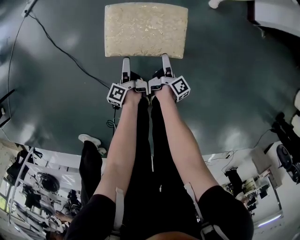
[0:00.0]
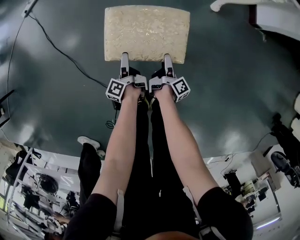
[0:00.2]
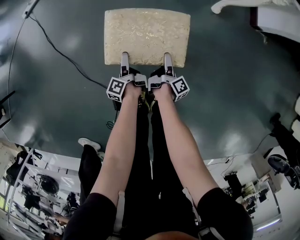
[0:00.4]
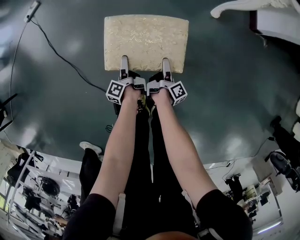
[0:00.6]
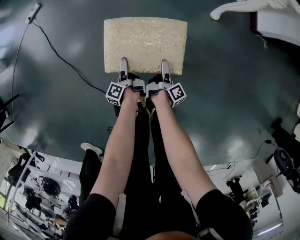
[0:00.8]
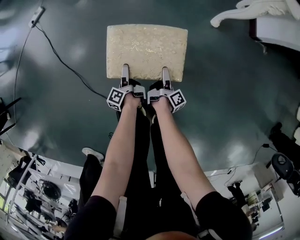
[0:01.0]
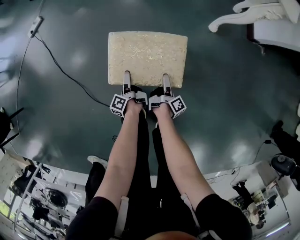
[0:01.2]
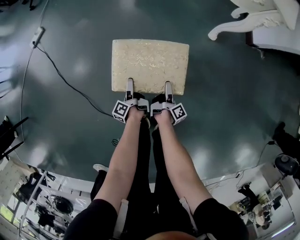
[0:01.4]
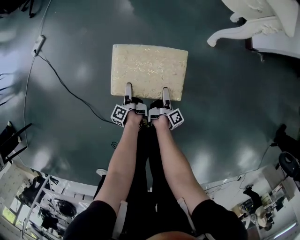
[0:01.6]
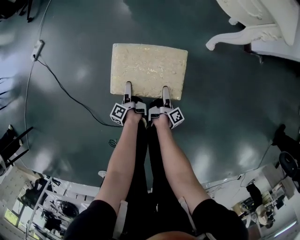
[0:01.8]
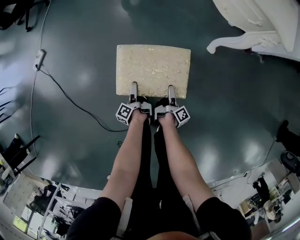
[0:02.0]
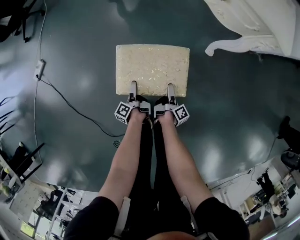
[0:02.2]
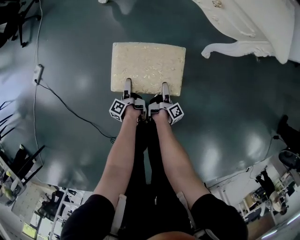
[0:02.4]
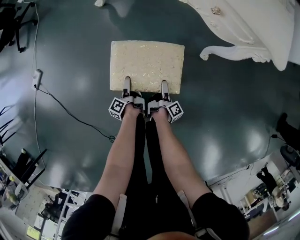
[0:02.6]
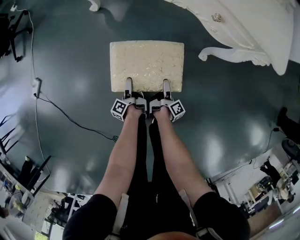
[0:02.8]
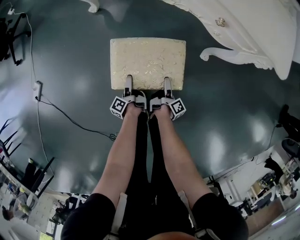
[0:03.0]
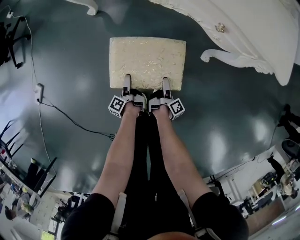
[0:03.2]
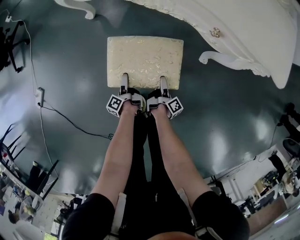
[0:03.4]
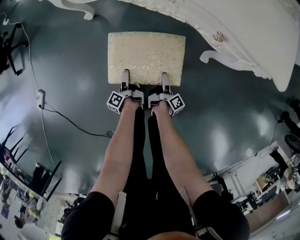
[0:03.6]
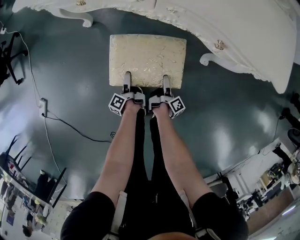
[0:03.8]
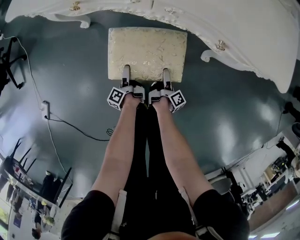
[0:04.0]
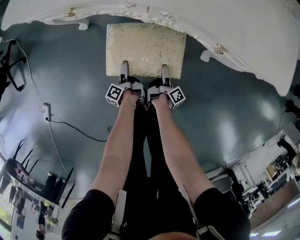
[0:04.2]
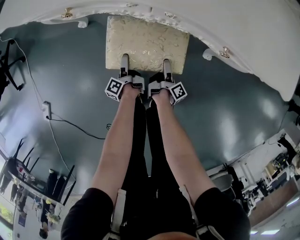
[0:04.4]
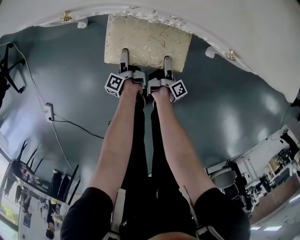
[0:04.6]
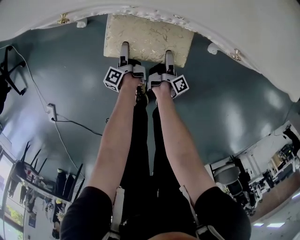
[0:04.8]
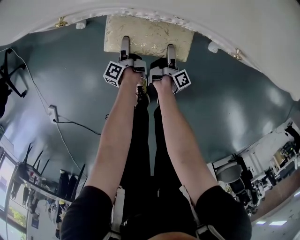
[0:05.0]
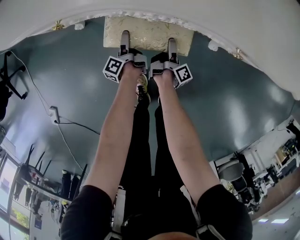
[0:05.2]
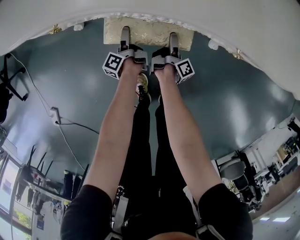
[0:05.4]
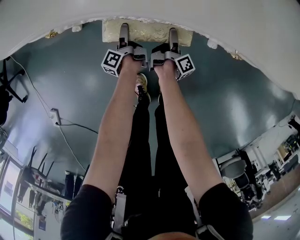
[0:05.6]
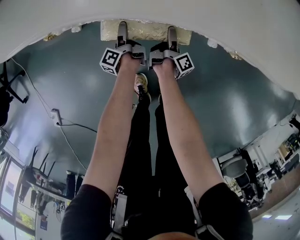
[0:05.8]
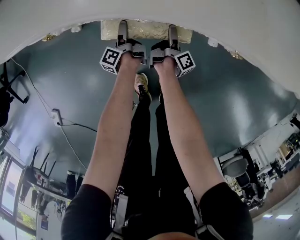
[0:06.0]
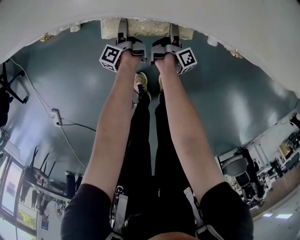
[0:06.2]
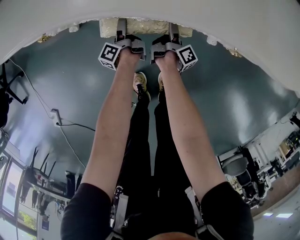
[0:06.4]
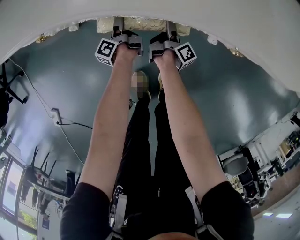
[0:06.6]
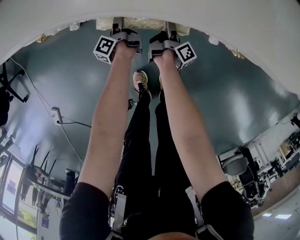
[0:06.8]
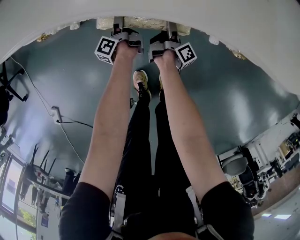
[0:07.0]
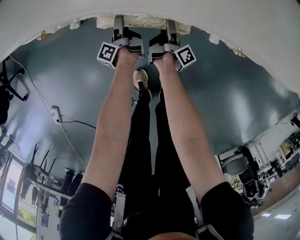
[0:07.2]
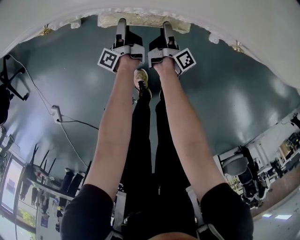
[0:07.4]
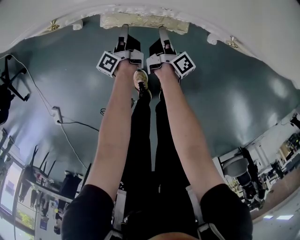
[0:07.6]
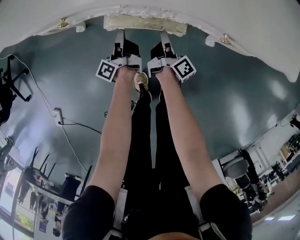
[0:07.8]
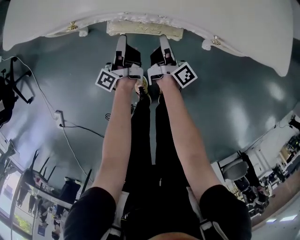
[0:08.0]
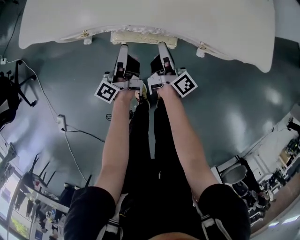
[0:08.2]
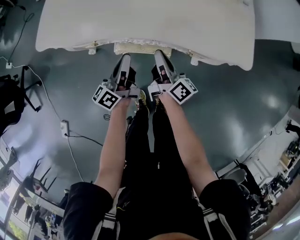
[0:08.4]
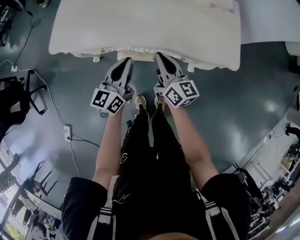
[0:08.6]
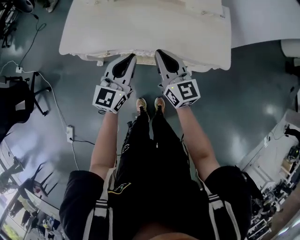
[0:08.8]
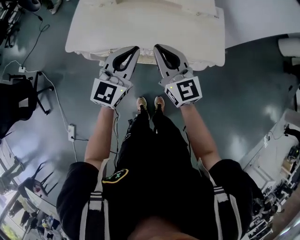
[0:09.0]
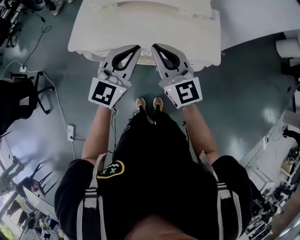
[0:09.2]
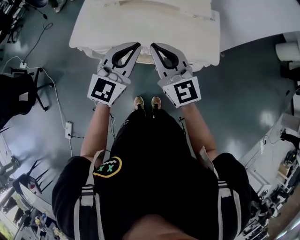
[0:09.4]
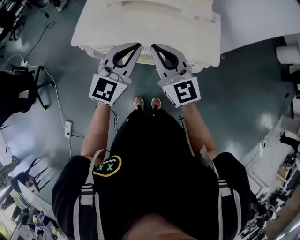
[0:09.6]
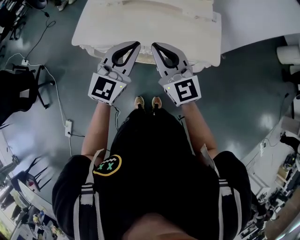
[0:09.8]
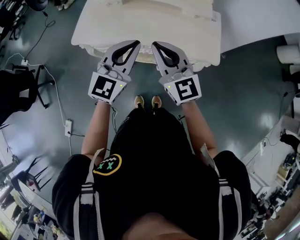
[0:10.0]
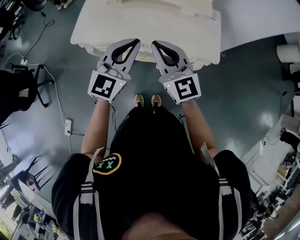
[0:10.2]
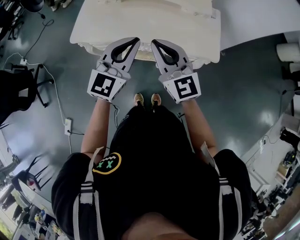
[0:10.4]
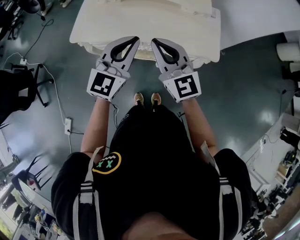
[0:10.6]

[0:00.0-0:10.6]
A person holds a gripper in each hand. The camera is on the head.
0:00.0 to 0:01.6: Both grippers move forward, some 20 cm.
0:01.6 to 0:03.0: The grippers both shift forward by about 35 cm.
0:03.0 to 0:04.6: The two grippers go approximately 25 cm forward.
0:04.6 to 0:06.0: The grippers both shift forward by some 10 cm.
0:06.0 to 0:07.6: Both grippers travel together upward, some 5 cm. The left gripper closes its fingers, while the right gripper closes up.
0:07.6 to 0:09.0: The grippers both shift upward by some 60 cm. The left gripper twists roughly 90 degrees clockwise, seen from behind, while the right gripper twists roughly 90 degrees counterclockwise, seen from behind.
0:09.0 to 0:10.6: The two grippers go approximately 10 cm upward.

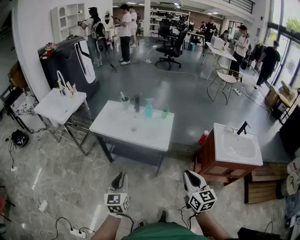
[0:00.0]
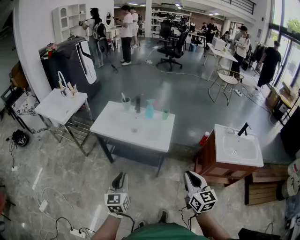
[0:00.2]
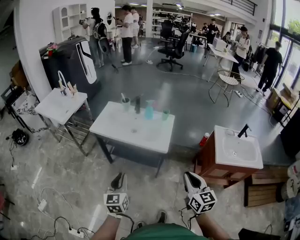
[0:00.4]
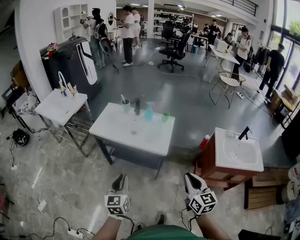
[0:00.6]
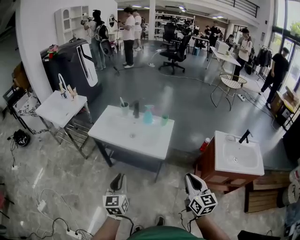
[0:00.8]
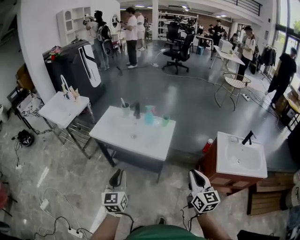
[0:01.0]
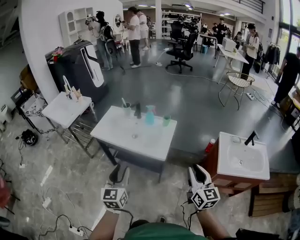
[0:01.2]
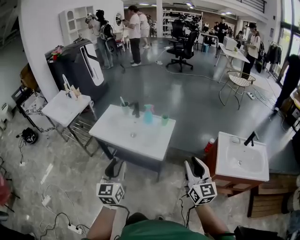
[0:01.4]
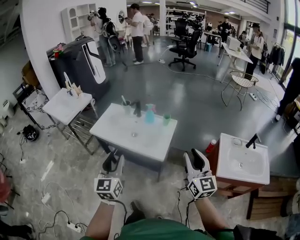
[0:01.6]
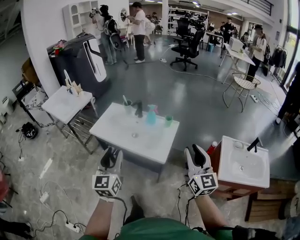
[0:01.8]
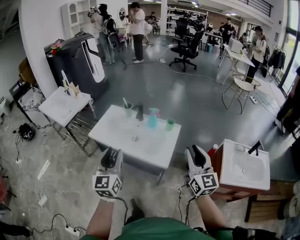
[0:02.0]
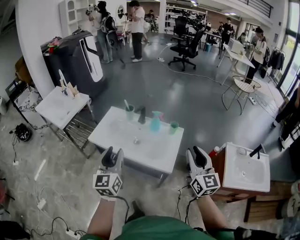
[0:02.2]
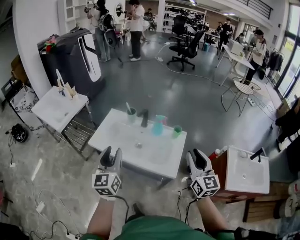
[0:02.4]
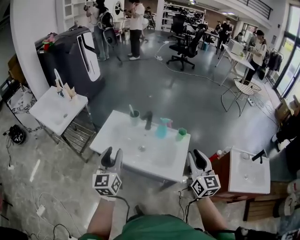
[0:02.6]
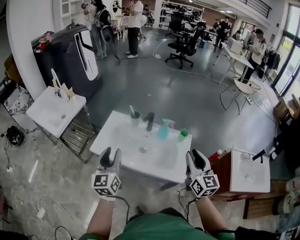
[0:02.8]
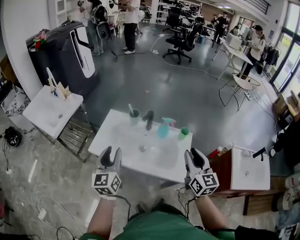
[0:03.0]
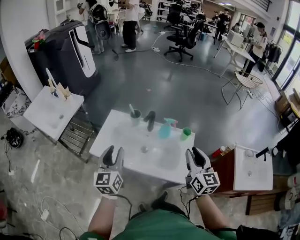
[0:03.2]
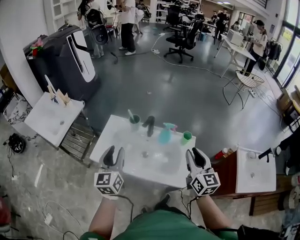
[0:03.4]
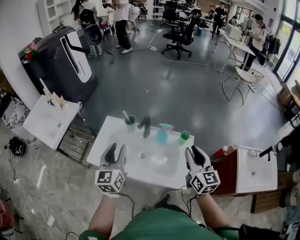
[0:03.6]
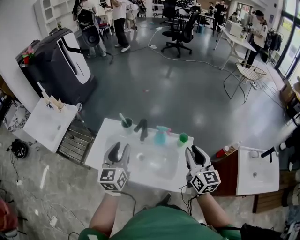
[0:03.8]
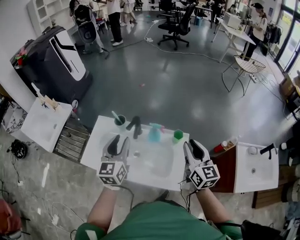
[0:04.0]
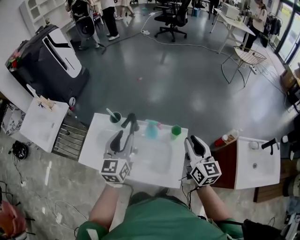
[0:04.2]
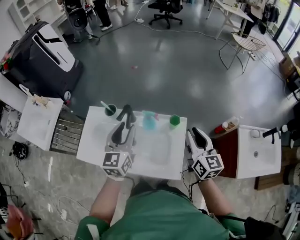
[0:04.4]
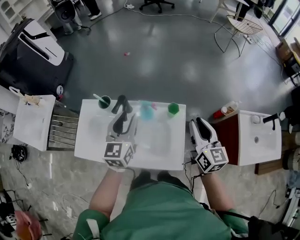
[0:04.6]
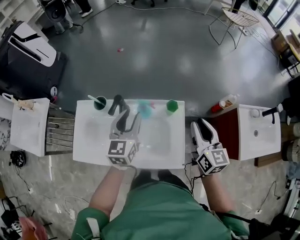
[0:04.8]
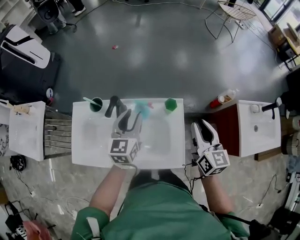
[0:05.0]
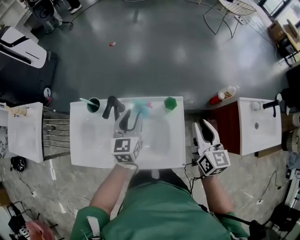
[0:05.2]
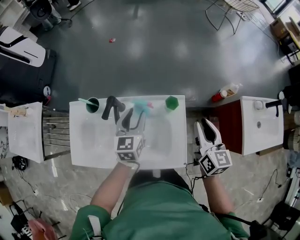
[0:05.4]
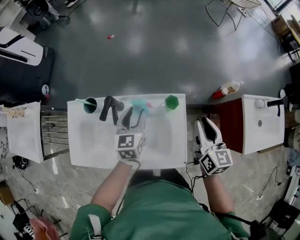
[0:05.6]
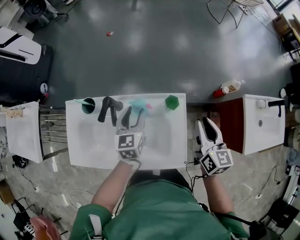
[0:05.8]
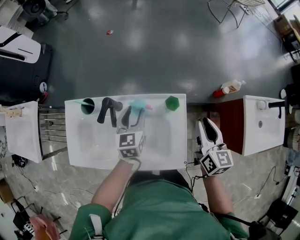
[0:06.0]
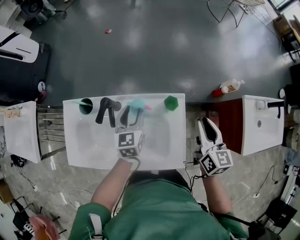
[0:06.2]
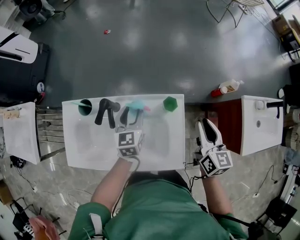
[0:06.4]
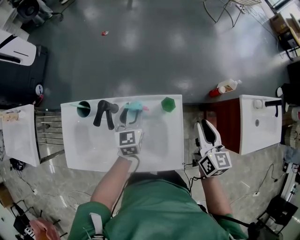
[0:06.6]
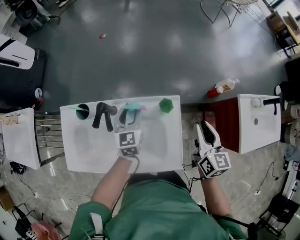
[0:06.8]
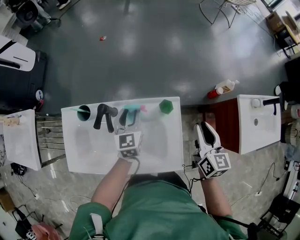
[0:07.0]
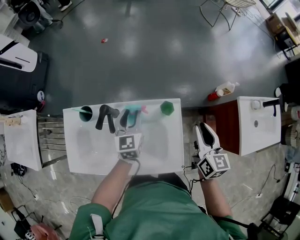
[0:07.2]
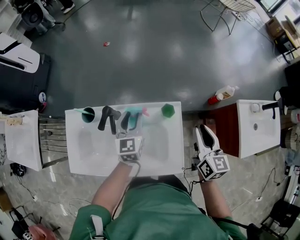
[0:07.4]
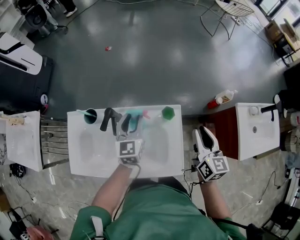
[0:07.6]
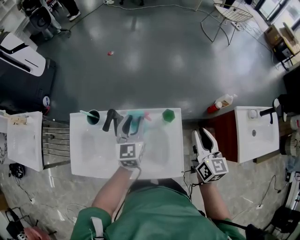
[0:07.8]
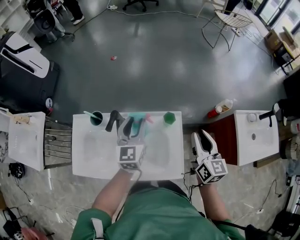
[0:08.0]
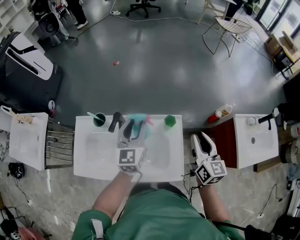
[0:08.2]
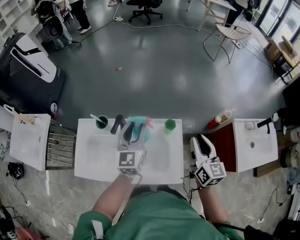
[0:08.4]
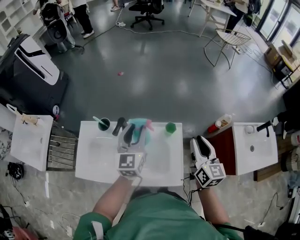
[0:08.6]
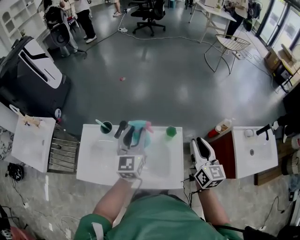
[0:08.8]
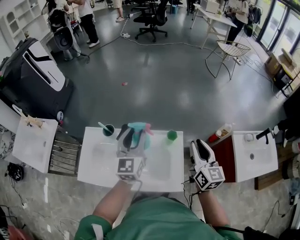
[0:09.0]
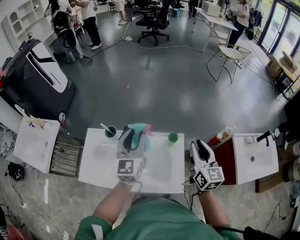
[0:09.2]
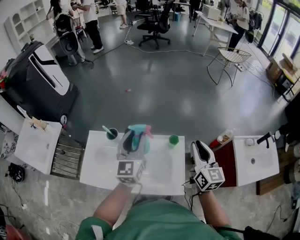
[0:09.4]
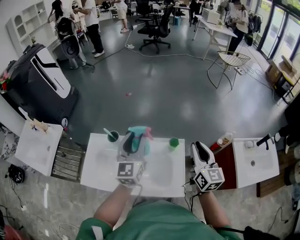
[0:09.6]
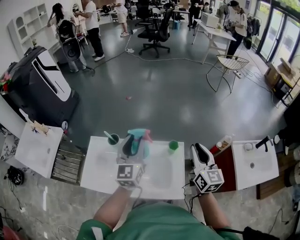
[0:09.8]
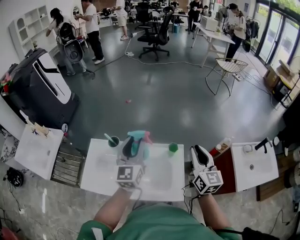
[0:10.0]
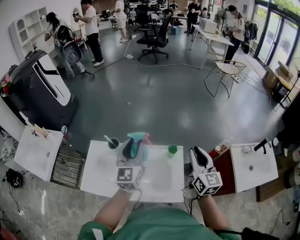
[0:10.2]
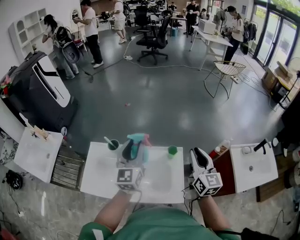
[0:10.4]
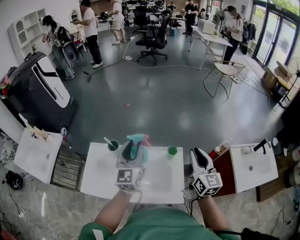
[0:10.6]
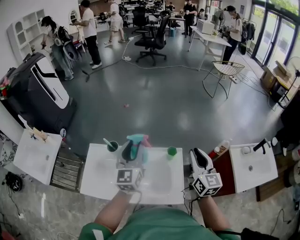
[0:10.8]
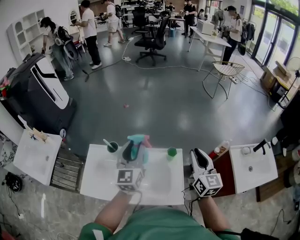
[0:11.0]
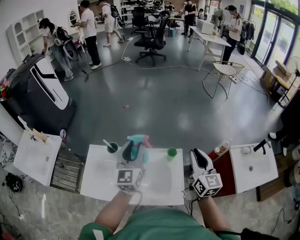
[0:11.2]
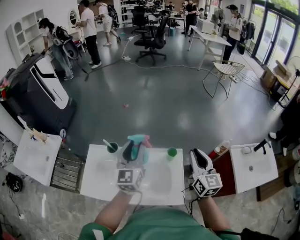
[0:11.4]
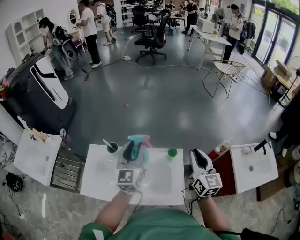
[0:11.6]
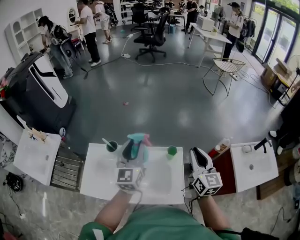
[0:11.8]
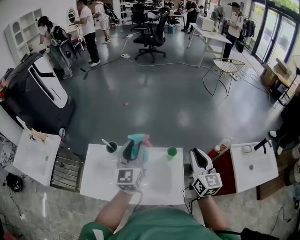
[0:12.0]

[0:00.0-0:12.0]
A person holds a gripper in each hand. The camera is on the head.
0:00.0 to 0:01.6: Both grippers move forward, to the right and upward, some 20 cm. The left gripper opens up.
0:01.6 to 0:03.0: Both grippers travel together forward and to the left, about 35 cm.
0:03.0 to 0:04.4: The left gripper moves to the right and forward, approximately 30 cm; the right gripper is displaced forward and to the right by about 25 cm.
0:04.4 to 0:06.0: The left gripper goes roughly 25 cm downward and forward, and changes its angle by approximately 20 degrees, while the right gripper heads downward and forward, covering approximately 15 cm, and rotates some 20 degrees.
0:06.0 to 0:07.6: The left gripper heads upward, covering roughly 5 cm.
0:07.6 to 0:09.0: The left gripper heads upward and backward, covering roughly 20 cm, while the right gripper is displaced upward by some 10 cm.
0:09.0 to 0:10.4: The left gripper changes place by some 5 cm; the right gripper ends up roughly 5 cm from where it was.
0:10.4 to 0:12.0: The grippers make only small movements.

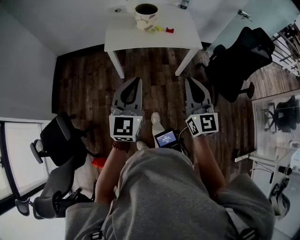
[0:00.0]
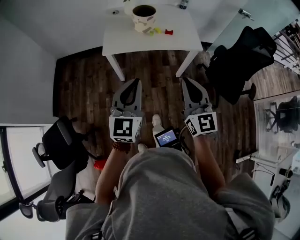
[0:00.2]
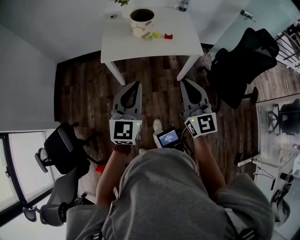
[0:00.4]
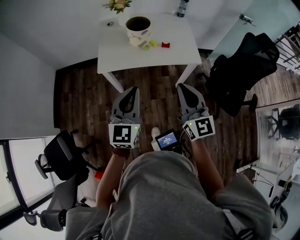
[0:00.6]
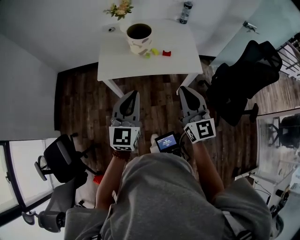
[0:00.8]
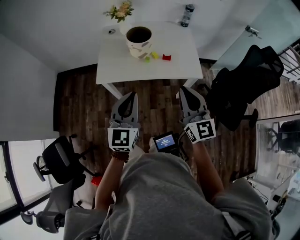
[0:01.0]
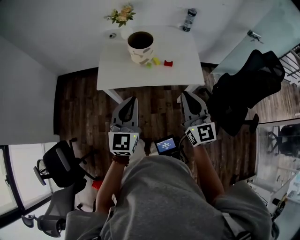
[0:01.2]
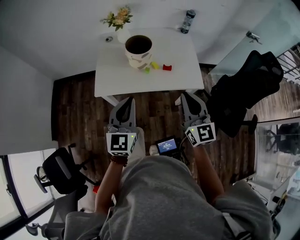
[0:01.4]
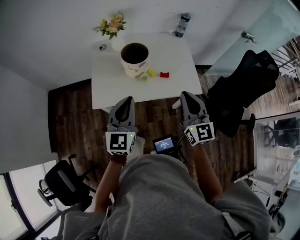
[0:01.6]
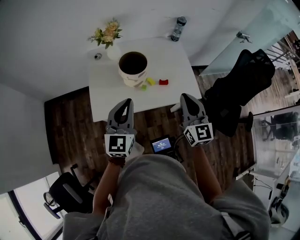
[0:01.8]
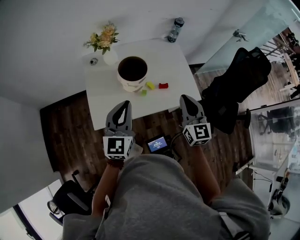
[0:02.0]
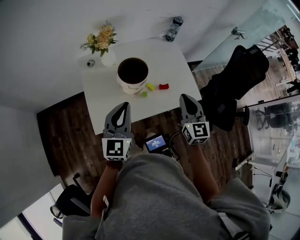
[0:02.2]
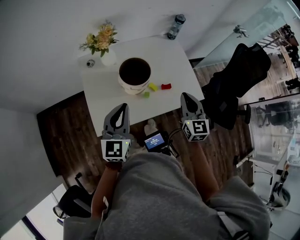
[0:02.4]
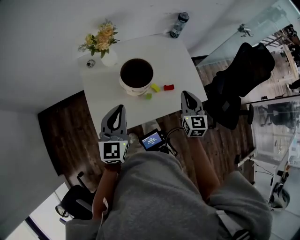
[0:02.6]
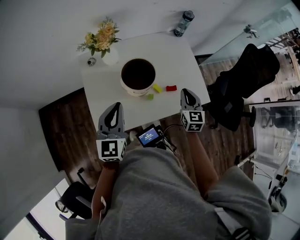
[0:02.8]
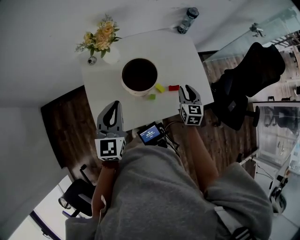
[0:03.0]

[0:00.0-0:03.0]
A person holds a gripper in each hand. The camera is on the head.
0:00.0 to 0:01.6: The two grippers go approximately 35 cm forward.
0:01.6 to 0:03.0: The left gripper is displaced forward and to the left by approximately 25 cm, while the right gripper shifts roughly 30 cm forward and downward, rotates approximately 40 degrees, and opens its fingers.
